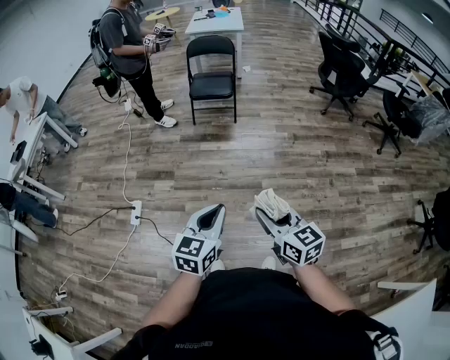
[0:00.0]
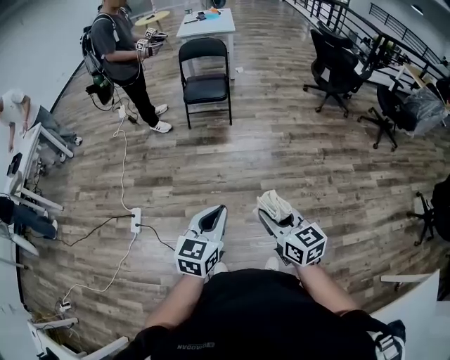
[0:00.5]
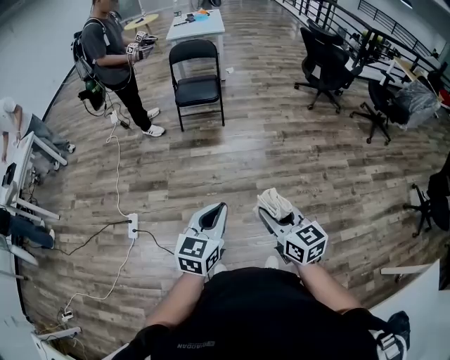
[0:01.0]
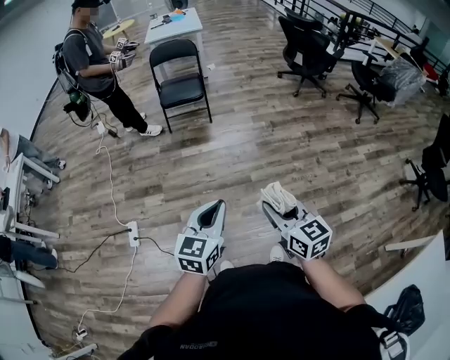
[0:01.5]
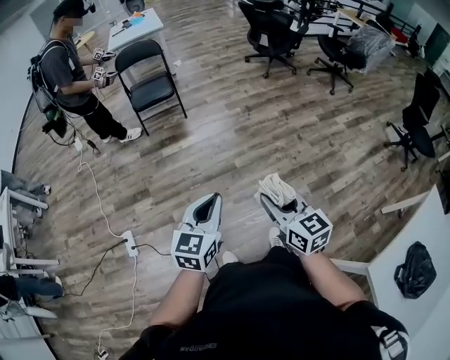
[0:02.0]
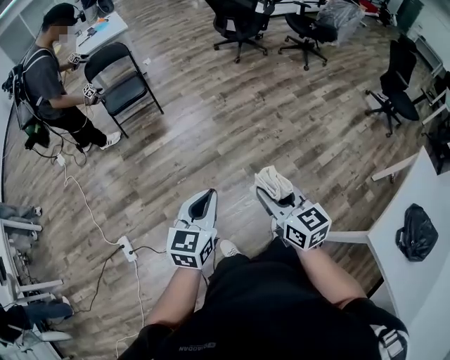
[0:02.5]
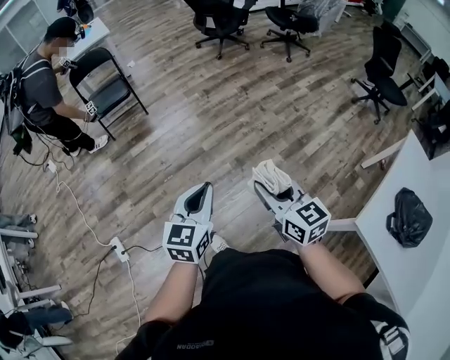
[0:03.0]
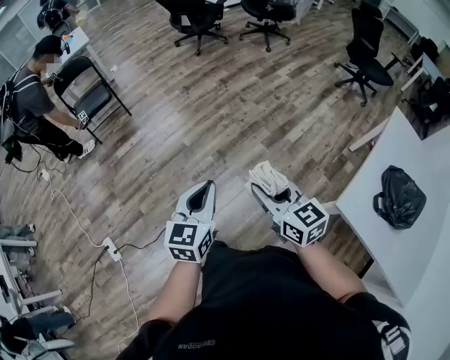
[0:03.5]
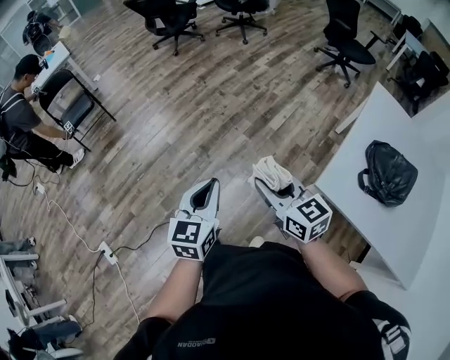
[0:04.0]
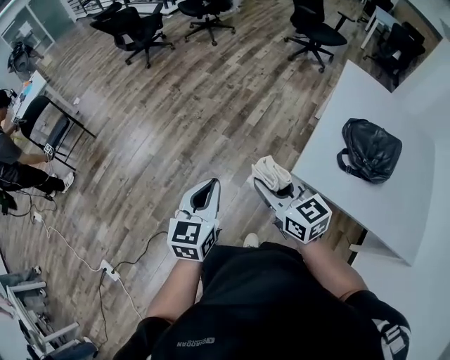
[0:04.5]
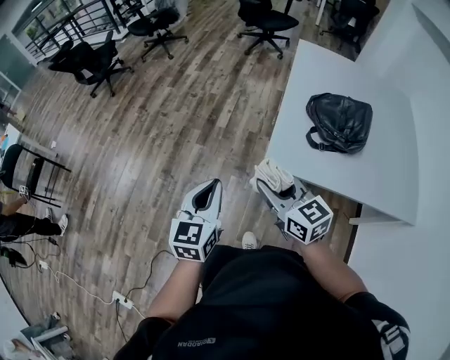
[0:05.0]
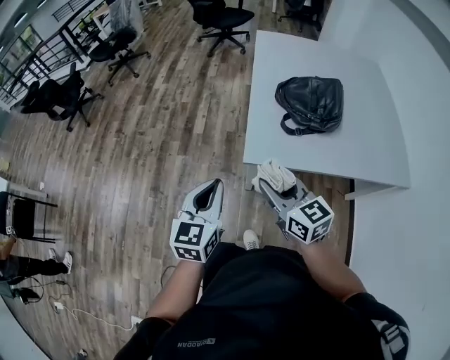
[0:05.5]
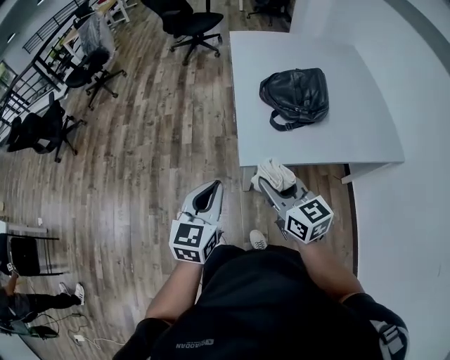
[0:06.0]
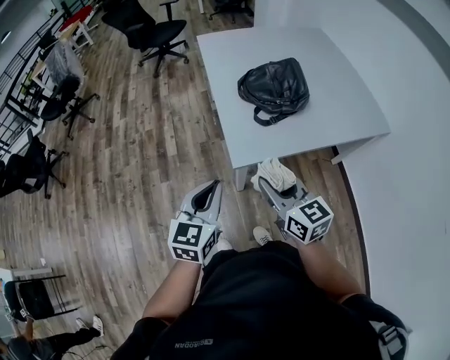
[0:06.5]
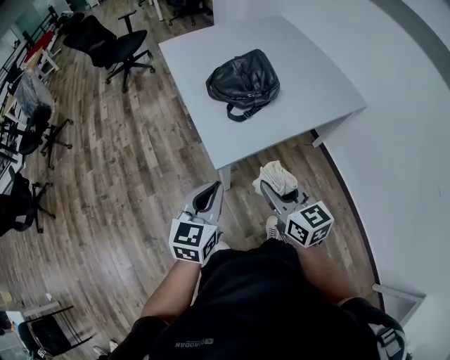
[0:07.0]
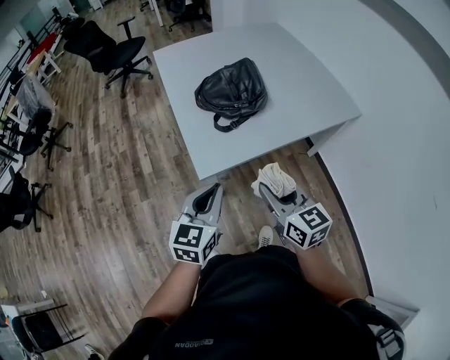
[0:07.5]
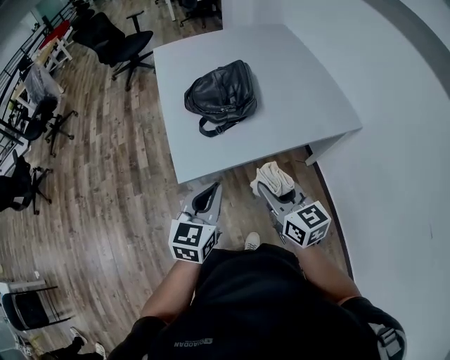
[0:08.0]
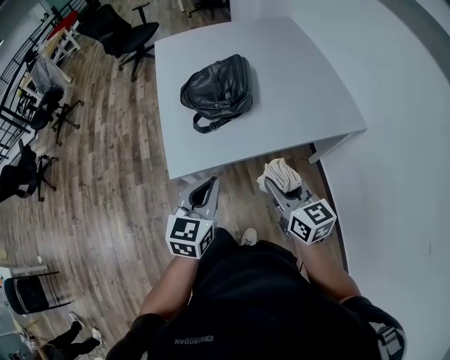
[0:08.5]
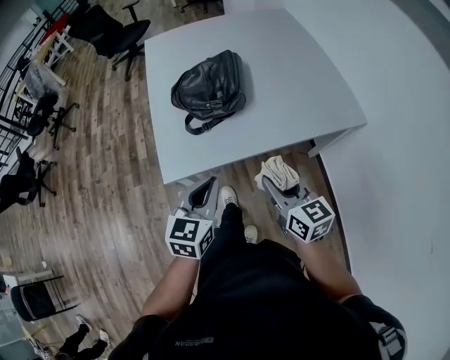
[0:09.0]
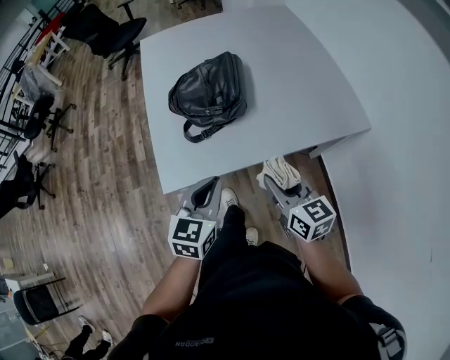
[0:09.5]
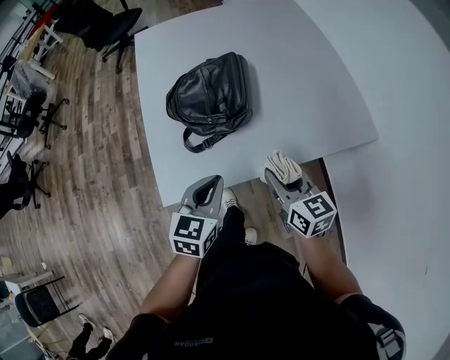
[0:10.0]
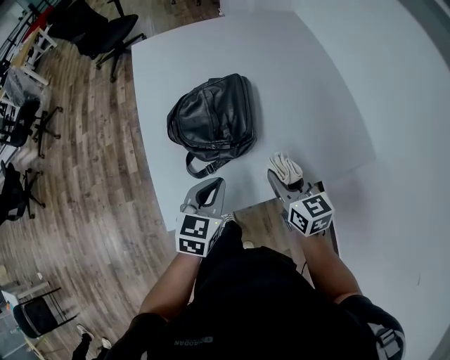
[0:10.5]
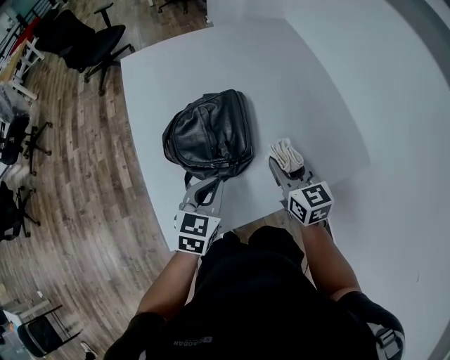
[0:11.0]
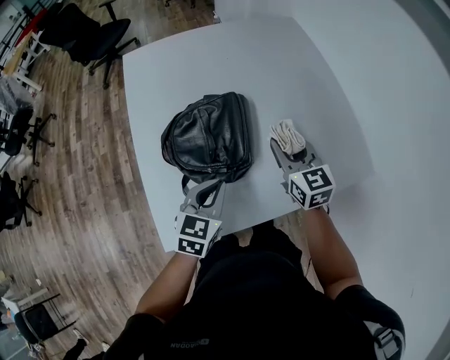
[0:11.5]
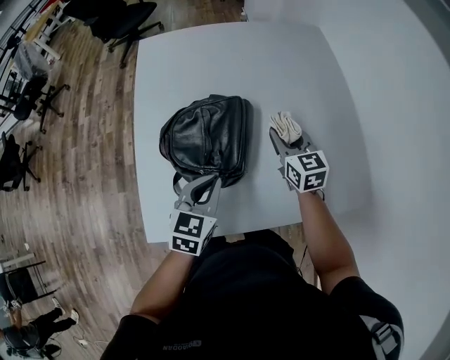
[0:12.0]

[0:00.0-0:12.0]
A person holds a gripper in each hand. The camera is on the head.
0:00.0 to 0:02.0: The right gripper swivels some 20 degrees.
0:02.0 to 0:04.0: Both grippers travel together to the right and backward, some 40 cm. The right gripper rotates approximately 20 degrees, while the left gripper rotates roughly 20 degrees.
0:04.0 to 0:06.0: The right gripper changes place by about 25 cm, and swivels some 50 degrees. Meanwhile the left gripper shifts by approximately 25 cm, and rotates about 50 degrees.
0:06.0 to 0:08.0: Both grippers move to the right, approximately 20 cm.
0:08.0 to 0:10.0: The two grippers go about 20 cm forward, to the right and downward.
0:10.0 to 0:12.0: The right gripper is displaced forward by approximately 30 cm. Meanwhile the left gripper shifts about 20 cm forward.

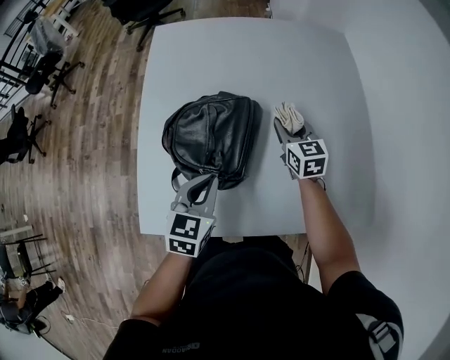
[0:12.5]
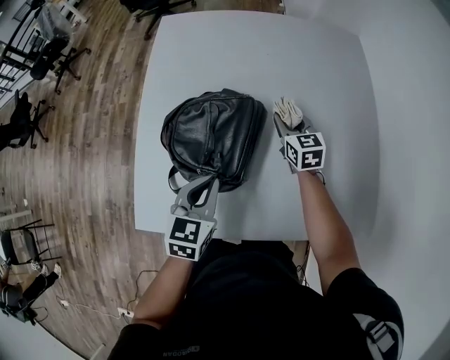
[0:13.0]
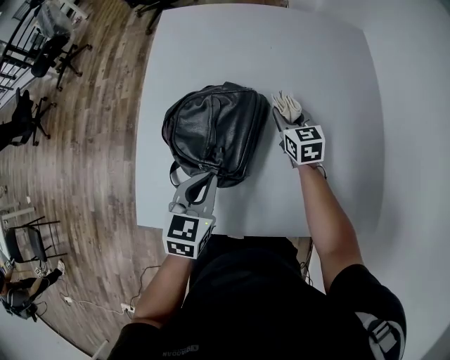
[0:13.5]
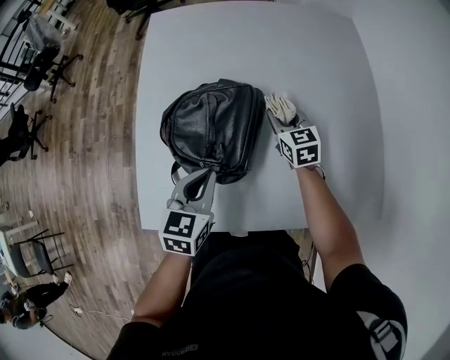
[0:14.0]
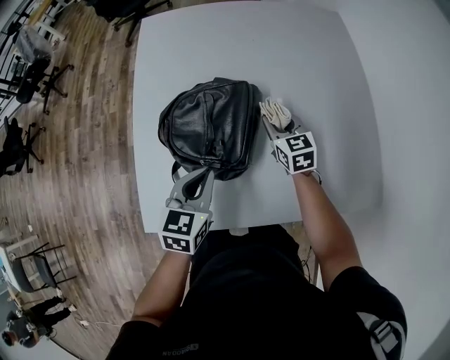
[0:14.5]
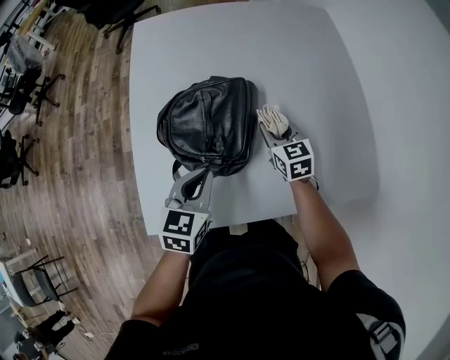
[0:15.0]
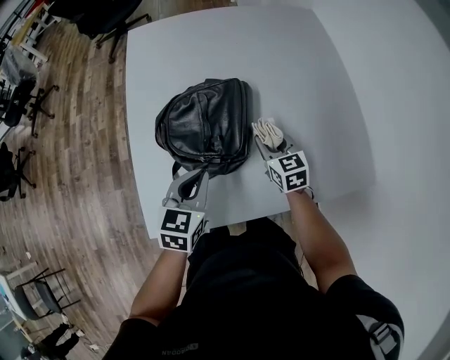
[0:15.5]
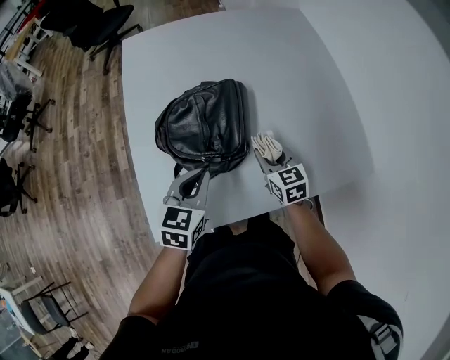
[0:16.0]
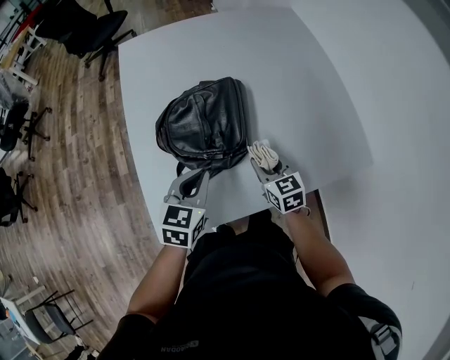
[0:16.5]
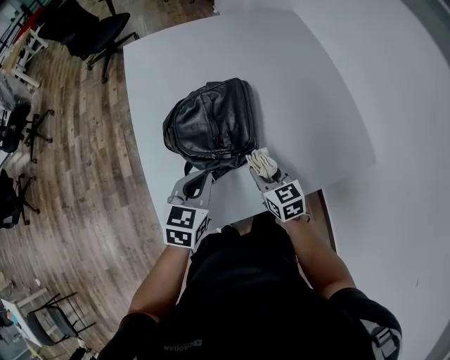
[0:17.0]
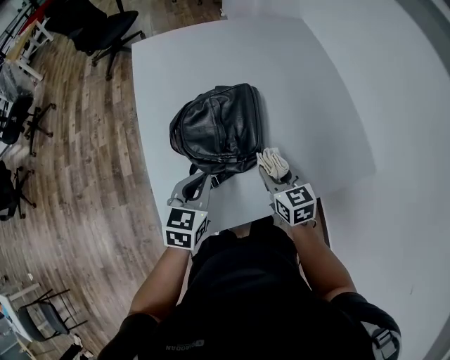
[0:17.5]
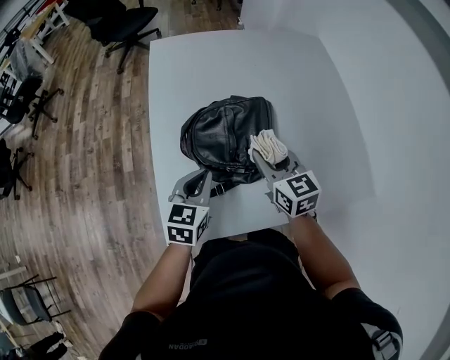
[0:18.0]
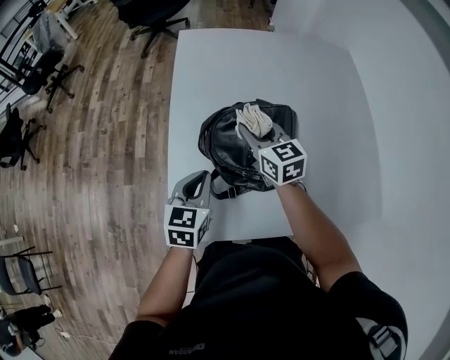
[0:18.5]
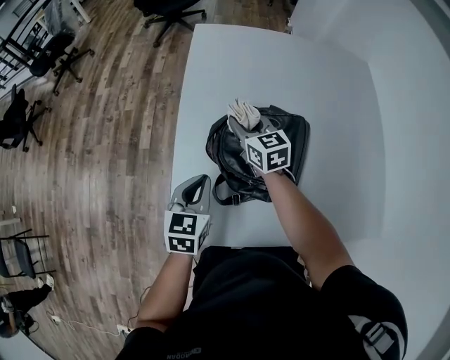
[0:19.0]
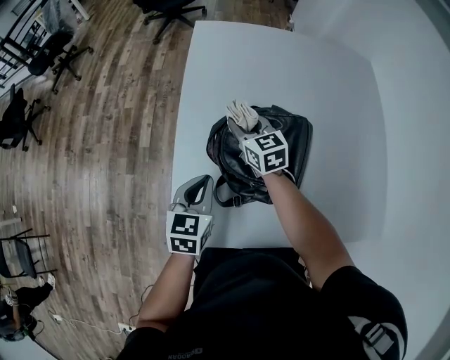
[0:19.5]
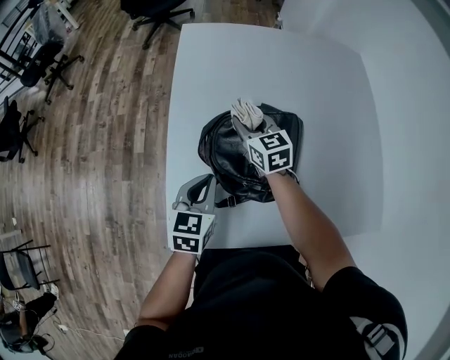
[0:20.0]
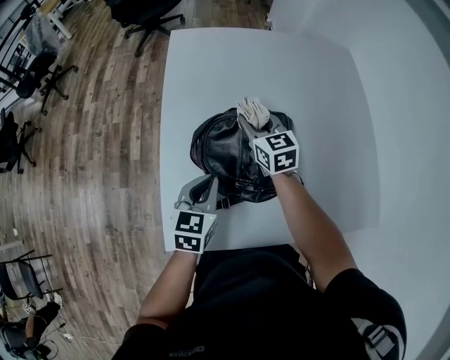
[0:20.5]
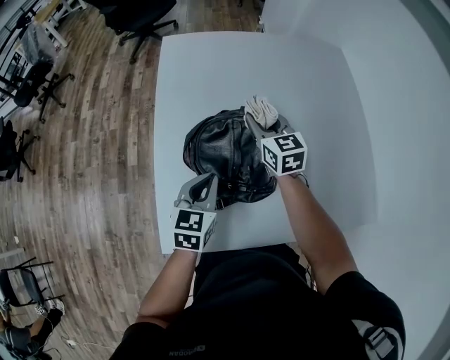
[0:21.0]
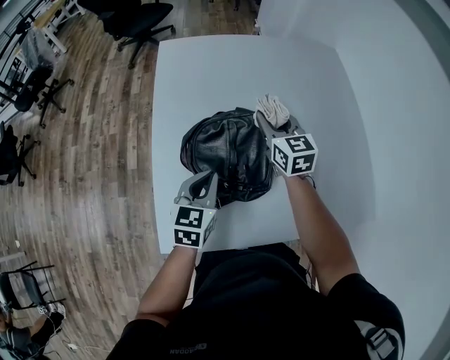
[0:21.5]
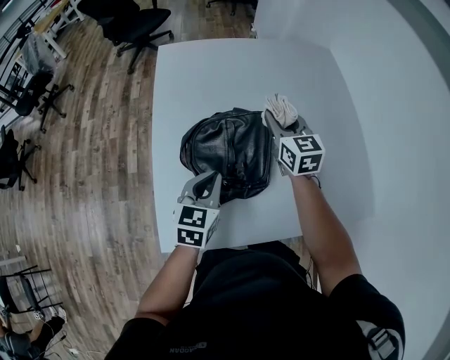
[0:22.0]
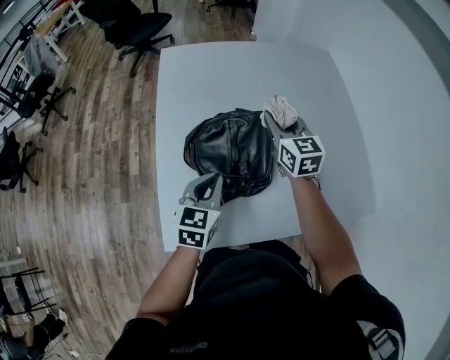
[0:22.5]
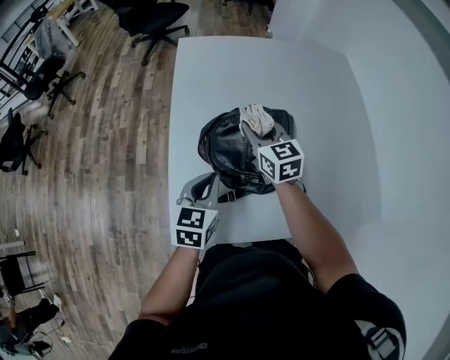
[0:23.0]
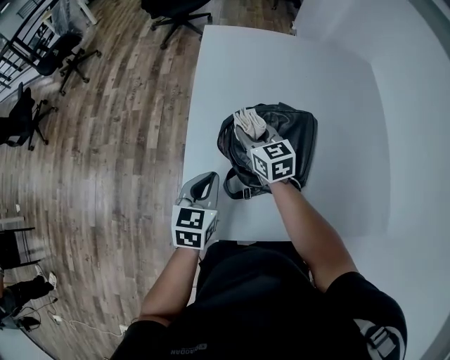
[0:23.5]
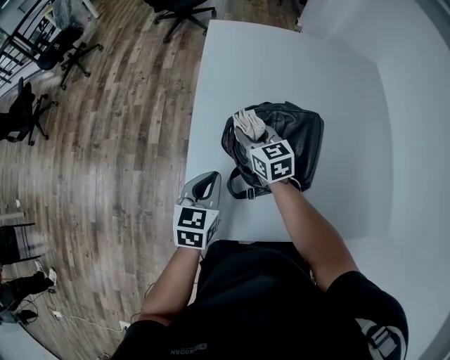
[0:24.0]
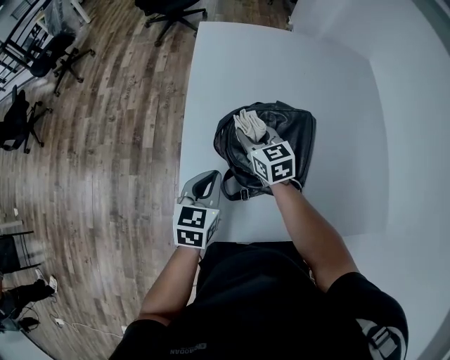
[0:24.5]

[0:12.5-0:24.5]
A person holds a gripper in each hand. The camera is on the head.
0:12.5 to 0:14.5: The right gripper goes about 5 cm downward.
0:14.5 to 0:16.5: The right gripper is displaced backward by roughly 20 cm, while the left gripper moves about 5 cm.
0:16.5 to 0:18.5: The right gripper is displaced to the left, forward and upward by some 25 cm, and turns by approximately 20 degrees, while the left gripper shifts roughly 10 cm to the left.
0:18.5 to 0:20.5: The right gripper travels forward by roughly 5 cm. Meanwhile the left gripper shifts by roughly 5 cm.
0:20.5 to 0:22.5: The left gripper ends up some 5 cm from where it was. The right gripper is displaced to the right and upward by roughly 15 cm.
0:22.5 to 0:24.5: The right gripper travels to the left and downward by roughly 25 cm, and rotates approximately 20 degrees. The left gripper goes approximately 10 cm to the left.

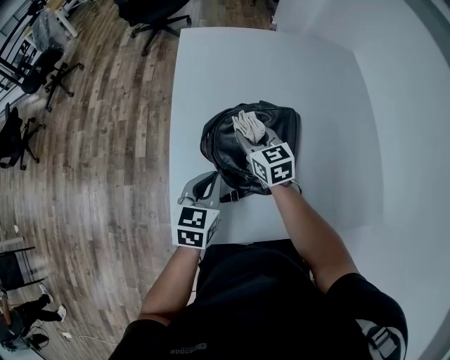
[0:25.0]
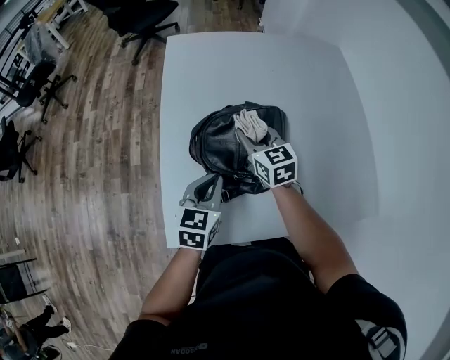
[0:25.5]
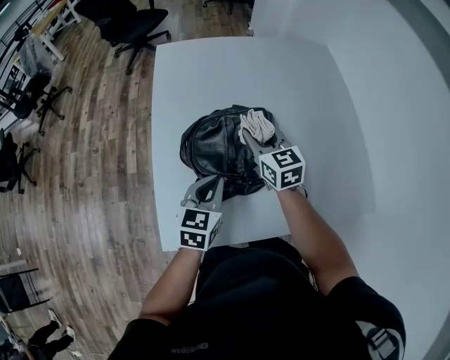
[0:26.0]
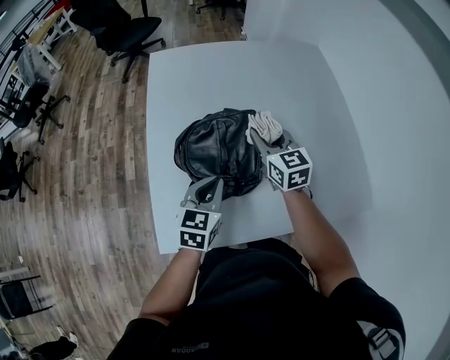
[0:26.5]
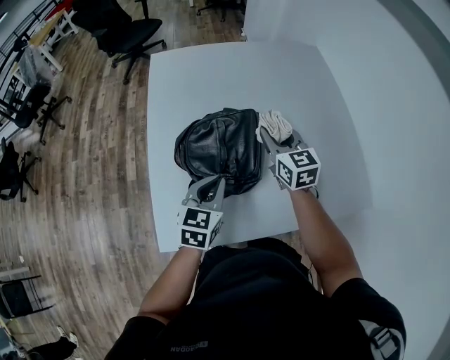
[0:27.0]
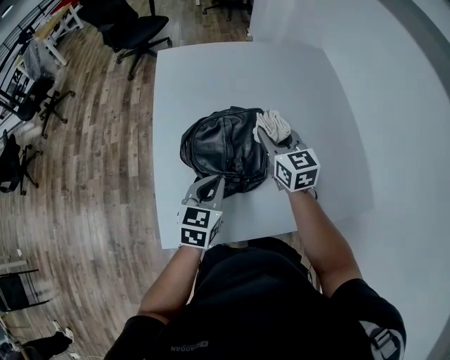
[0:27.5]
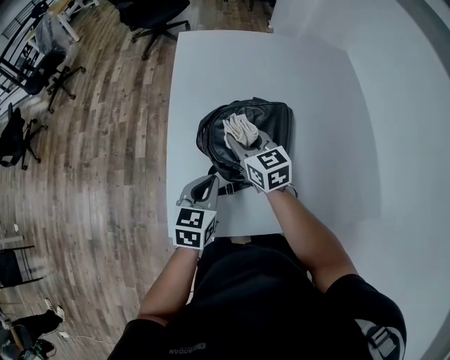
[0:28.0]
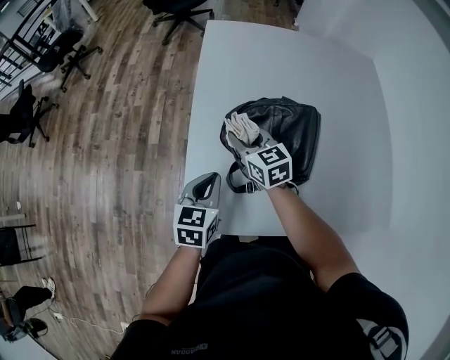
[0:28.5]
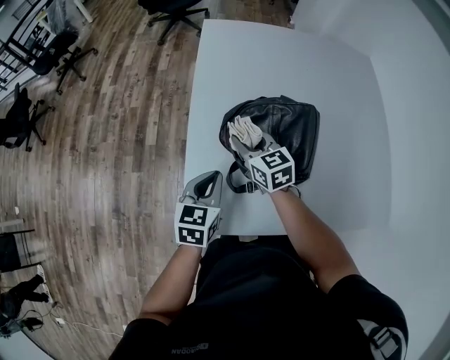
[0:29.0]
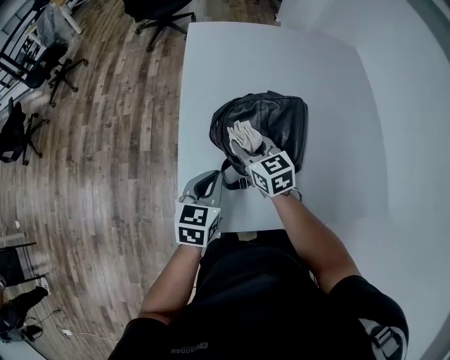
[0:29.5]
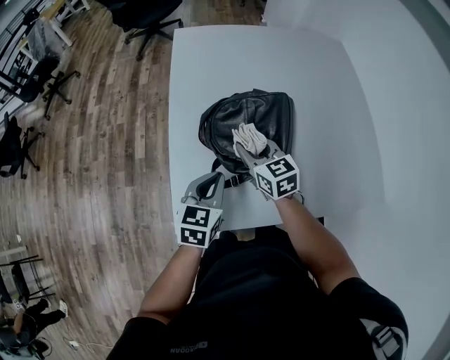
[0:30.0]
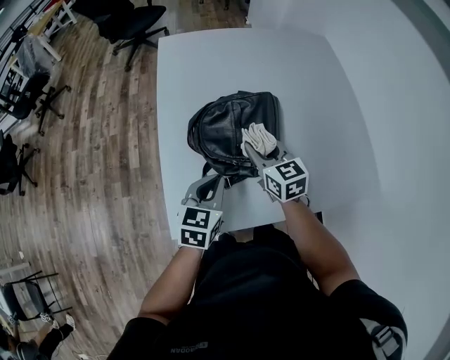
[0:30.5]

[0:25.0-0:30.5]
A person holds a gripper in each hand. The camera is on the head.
0:25.0 to 0:27.0: The right gripper heads to the right and upward, covering about 20 cm, while the left gripper shifts some 10 cm to the right.
0:27.0 to 0:28.5: The left gripper travels to the left by about 15 cm. Meanwhile the right gripper goes roughly 25 cm to the left, and turns by roughly 20 degrees.
0:28.5 to 0:30.5: The right gripper is displaced to the right and backward by roughly 15 cm. The left gripper moves to the right, roughly 10 cm.
